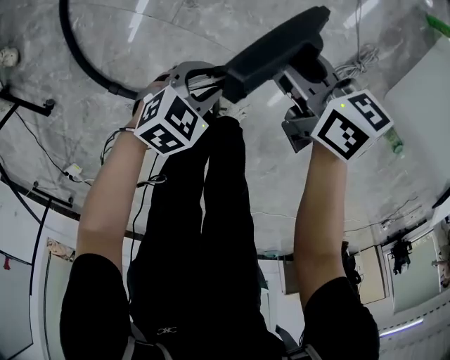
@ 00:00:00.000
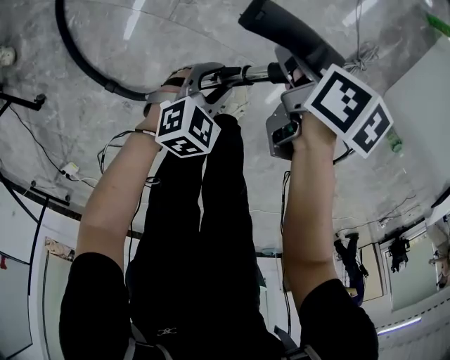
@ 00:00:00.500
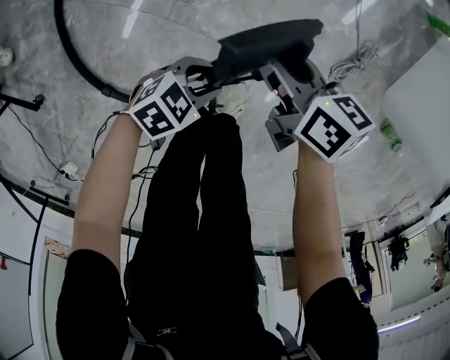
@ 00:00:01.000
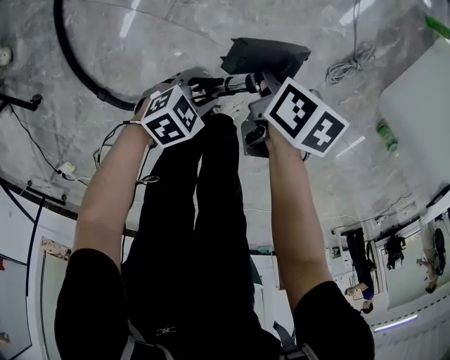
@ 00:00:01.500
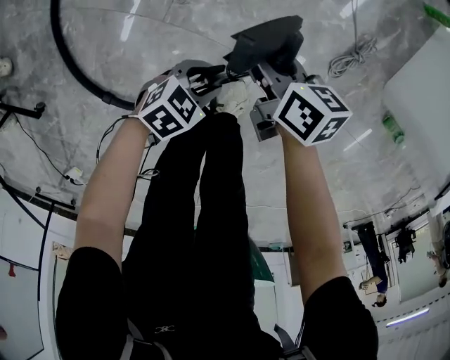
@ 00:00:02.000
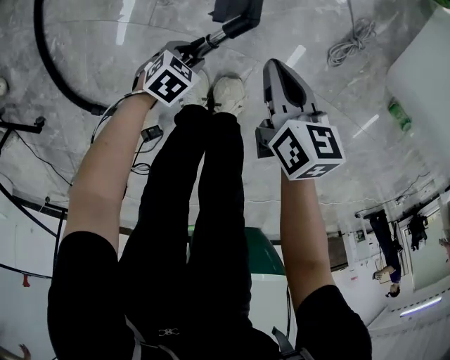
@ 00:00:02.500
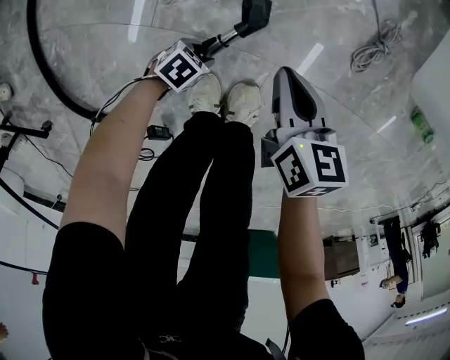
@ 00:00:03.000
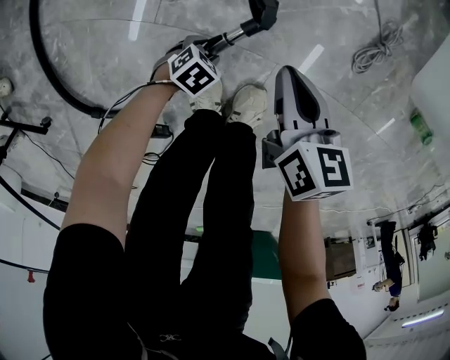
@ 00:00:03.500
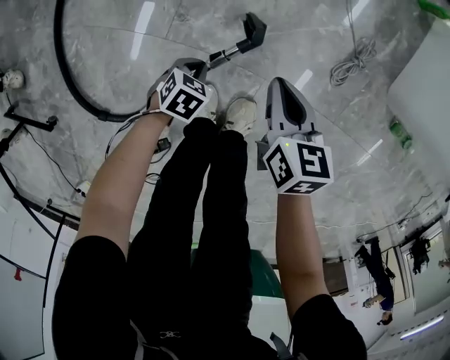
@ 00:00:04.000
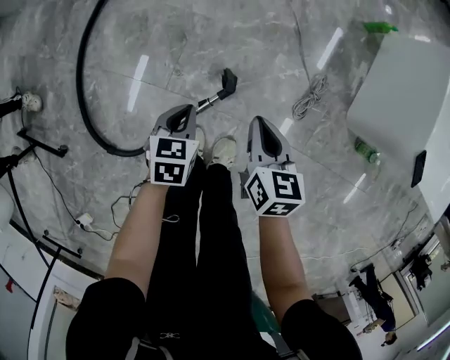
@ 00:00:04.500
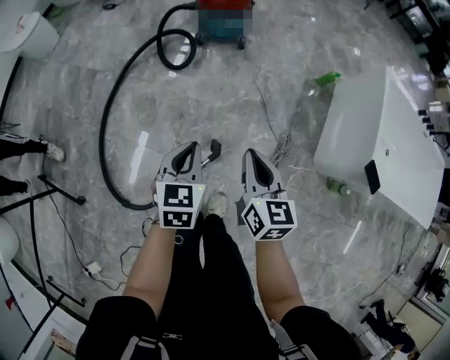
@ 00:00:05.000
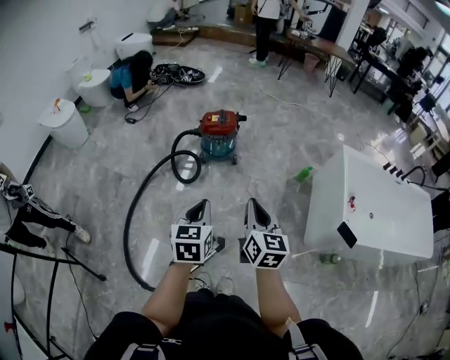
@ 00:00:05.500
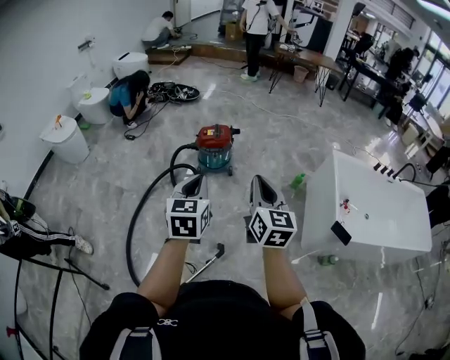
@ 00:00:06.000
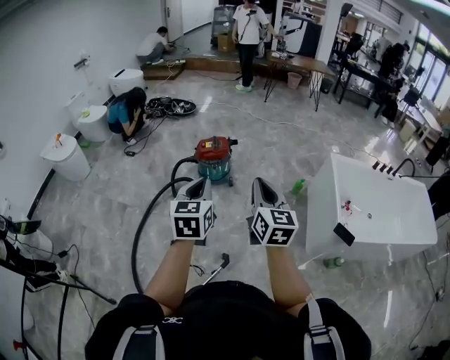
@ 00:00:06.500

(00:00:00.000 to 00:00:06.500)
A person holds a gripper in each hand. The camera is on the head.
00:00:00.000 - 00:00:02.000: Both grippers travel together downward, roughly 5 cm.
00:00:02.000 - 00:00:04.500: Both grippers travel together upward, roughly 20 cm. The right gripper turns by approximately 30 degrees, and closes its fingers, while the left gripper turns by about 40 degrees, and closes its fingers.
00:00:04.500 - 00:00:06.500: Both grippers move upward, about 70 cm. The left gripper points its fingers some 40 degrees further upward. Meanwhile the right gripper tilts its fingers approximately 40 degrees upward.

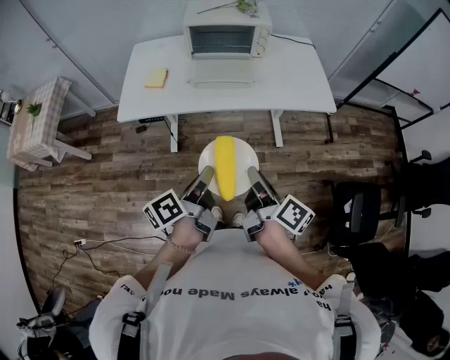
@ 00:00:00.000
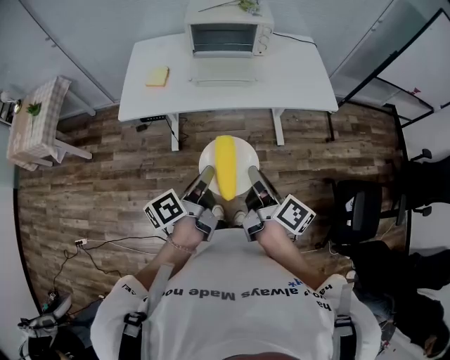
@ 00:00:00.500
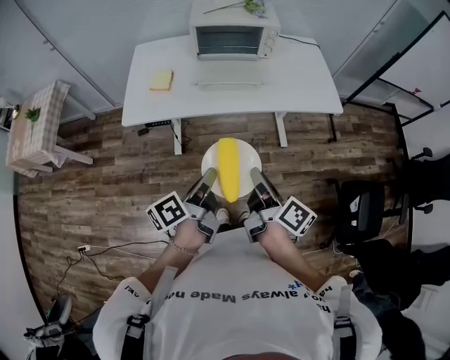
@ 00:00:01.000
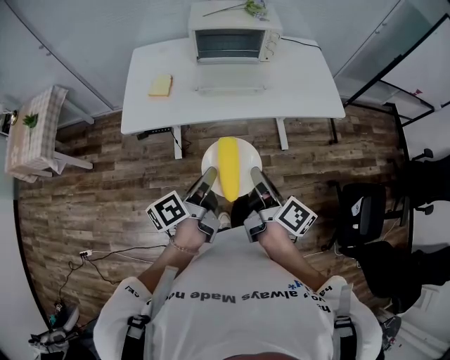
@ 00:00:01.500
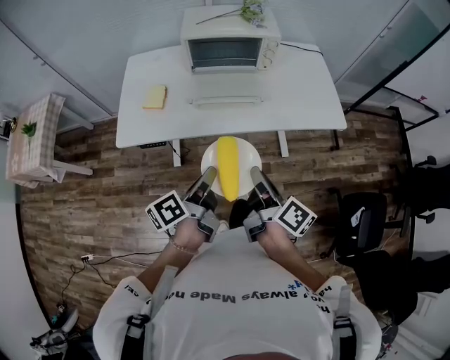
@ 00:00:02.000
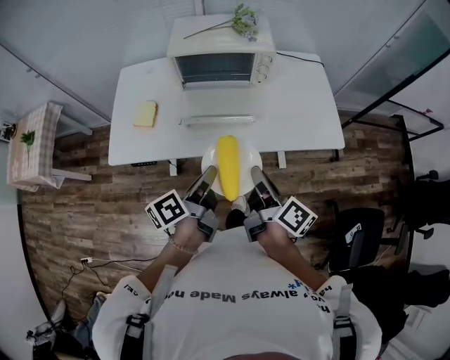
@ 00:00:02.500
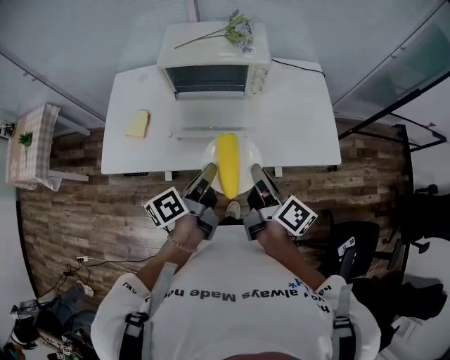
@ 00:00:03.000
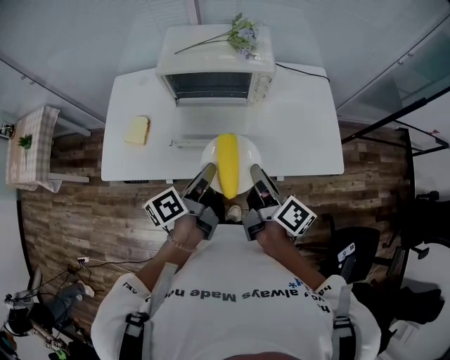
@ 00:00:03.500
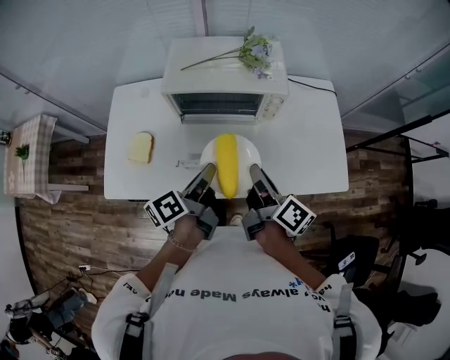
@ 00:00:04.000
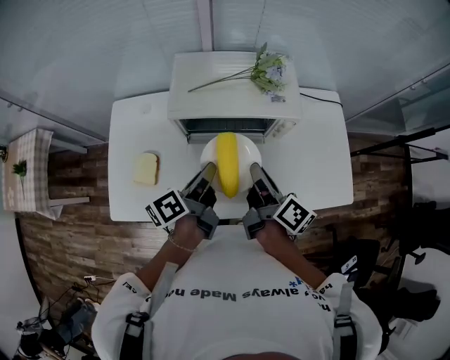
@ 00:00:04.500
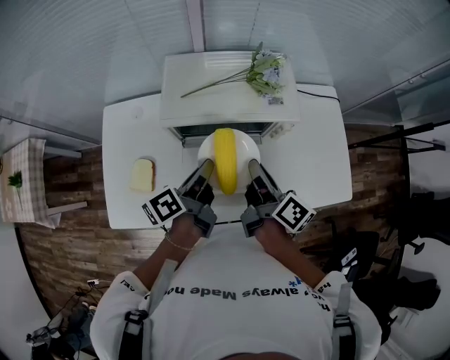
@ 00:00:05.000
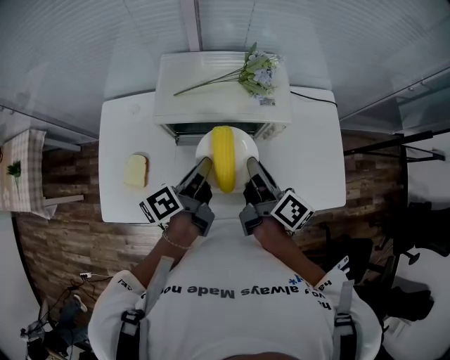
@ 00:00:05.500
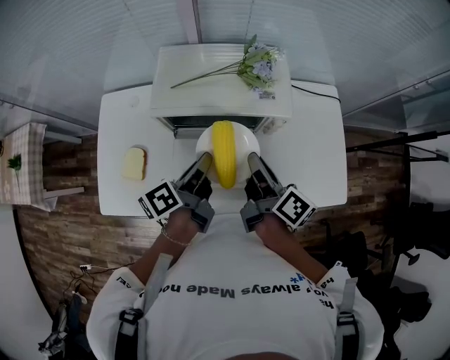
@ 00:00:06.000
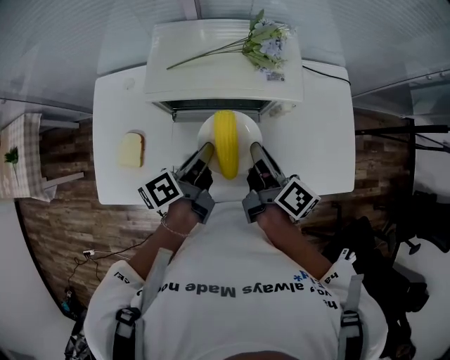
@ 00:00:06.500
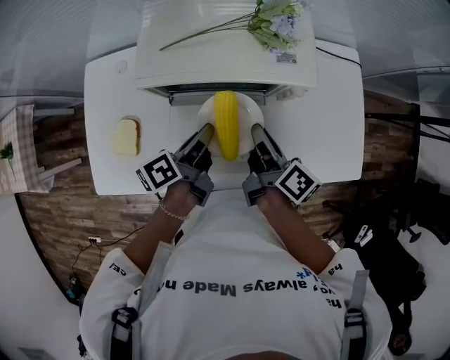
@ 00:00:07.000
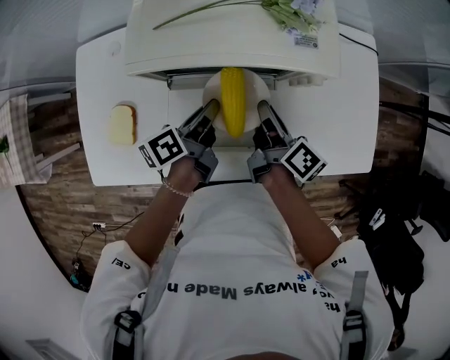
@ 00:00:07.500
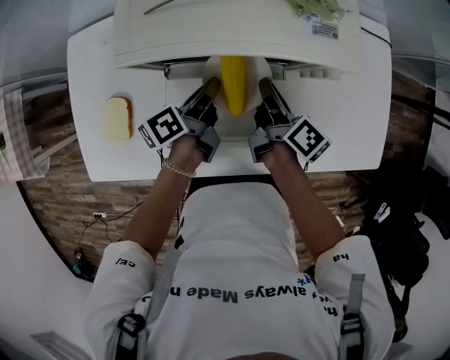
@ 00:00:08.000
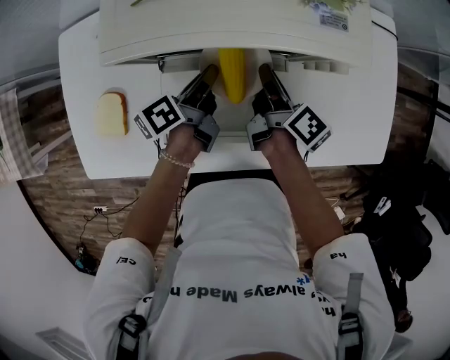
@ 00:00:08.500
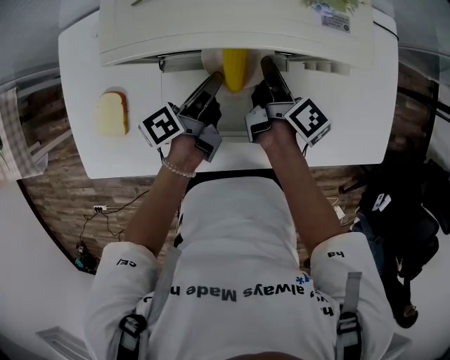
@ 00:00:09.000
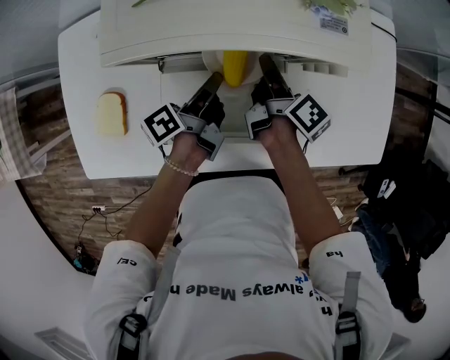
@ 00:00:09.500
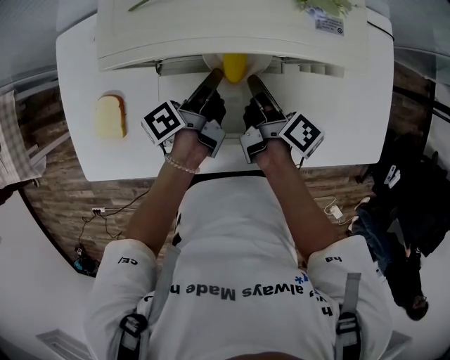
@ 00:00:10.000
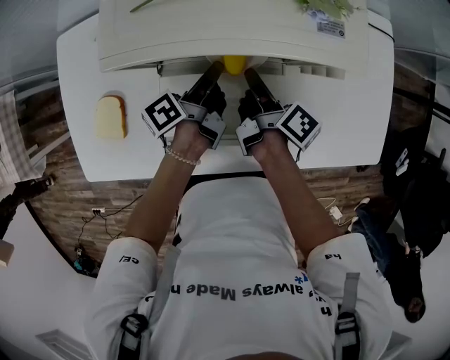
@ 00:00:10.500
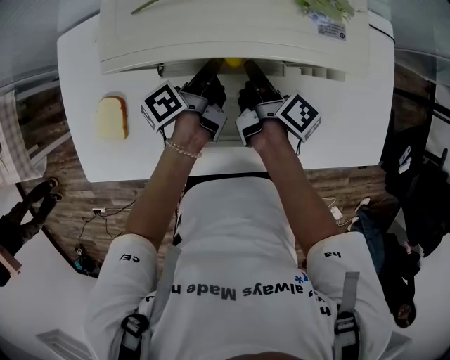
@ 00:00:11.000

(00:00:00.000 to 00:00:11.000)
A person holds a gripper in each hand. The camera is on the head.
00:00:00.000 - 00:00:02.000: Both grippers travel together forward, roughly 15 cm.
00:00:02.000 - 00:00:03.500: Both grippers travel together forward, some 25 cm.
00:00:03.500 - 00:00:05.500: Both grippers travel together forward, roughly 20 cm.
00:00:05.500 - 00:00:07.500: The grippers both shift downward by approximately 15 cm.
00:00:07.500 - 00:00:09.000: The left gripper moves approximately 5 cm. Meanwhile the right gripper shifts approximately 10 cm downward and forward.
00:00:09.000 - 00:00:11.000: The left gripper heads forward, covering some 5 cm.

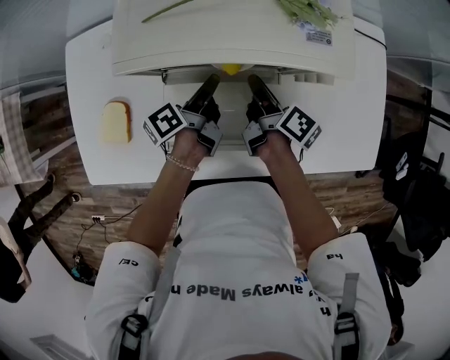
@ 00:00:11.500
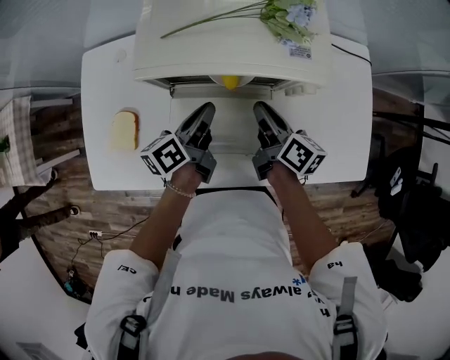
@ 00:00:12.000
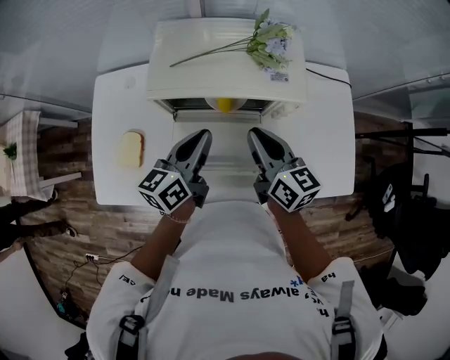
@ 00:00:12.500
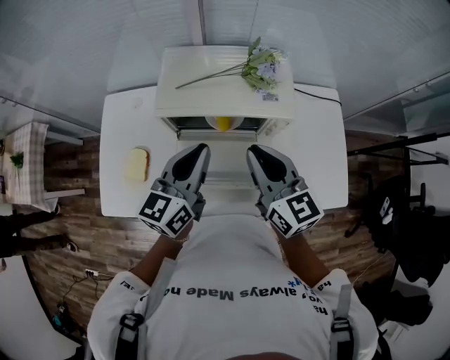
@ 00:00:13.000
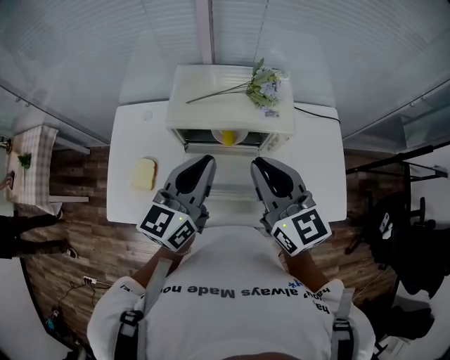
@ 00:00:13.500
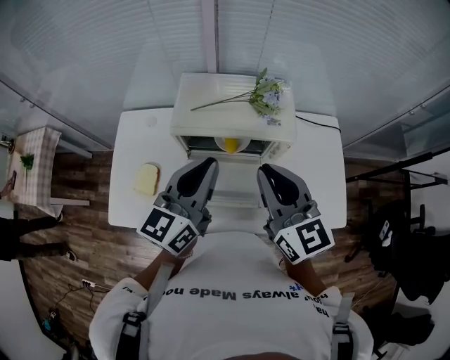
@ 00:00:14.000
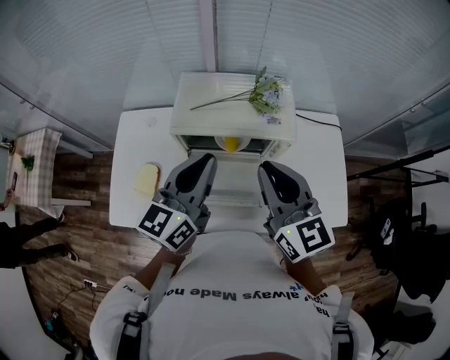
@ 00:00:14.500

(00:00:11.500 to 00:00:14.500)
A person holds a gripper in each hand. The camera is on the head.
00:00:11.500 - 00:00:13.000: The grippers both shift upward by approximately 30 cm. The left gripper rotates around the line of its fingers by about 60 degrees, clockwise from behind. Meanwhile the right gripper rotates around the line of its fingers by some 60 degrees, counterclockwise from behind.
00:00:13.000 - 00:00:14.500: The two grippers go roughly 10 cm upward.

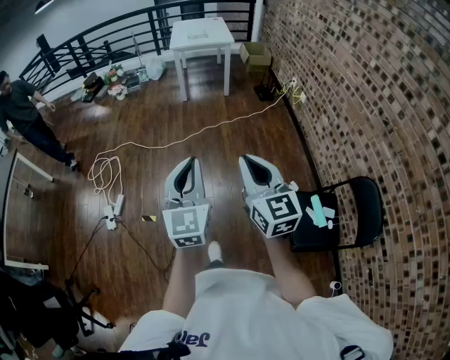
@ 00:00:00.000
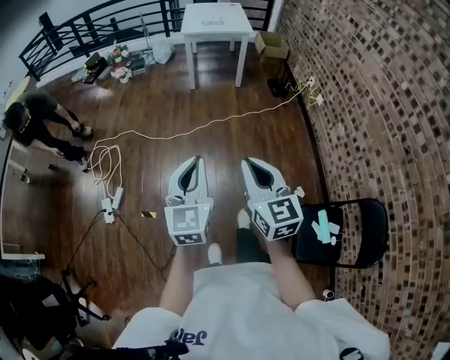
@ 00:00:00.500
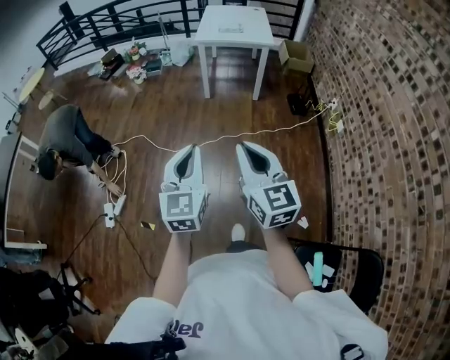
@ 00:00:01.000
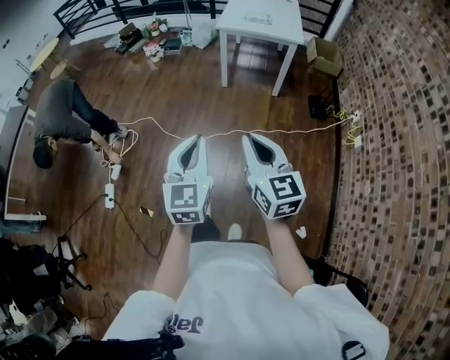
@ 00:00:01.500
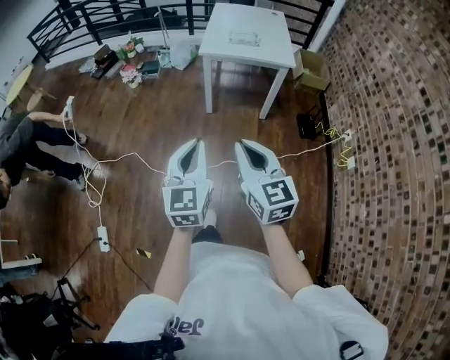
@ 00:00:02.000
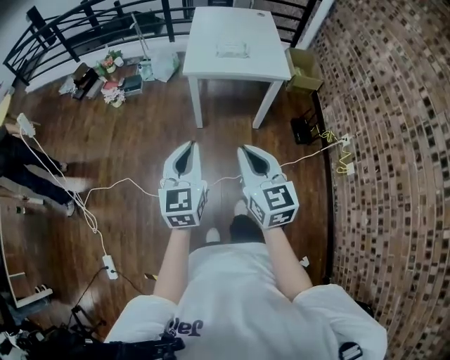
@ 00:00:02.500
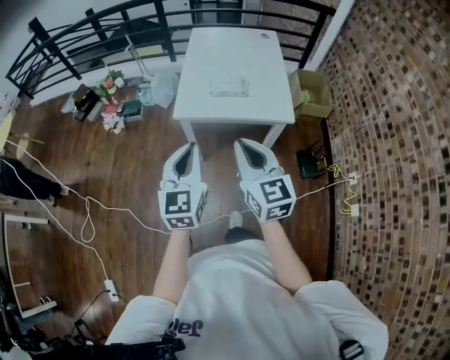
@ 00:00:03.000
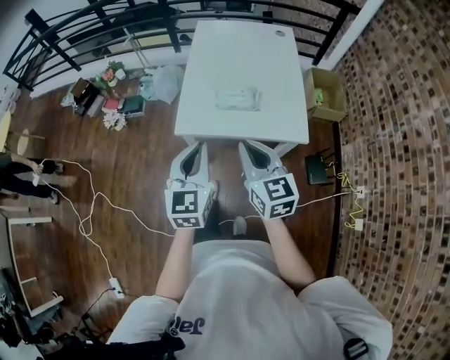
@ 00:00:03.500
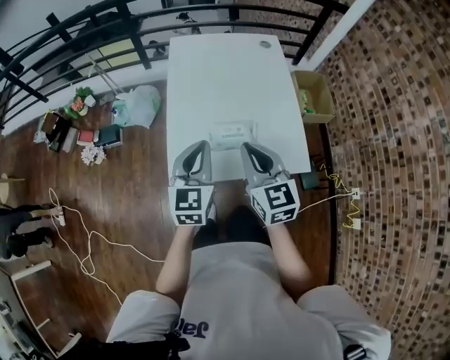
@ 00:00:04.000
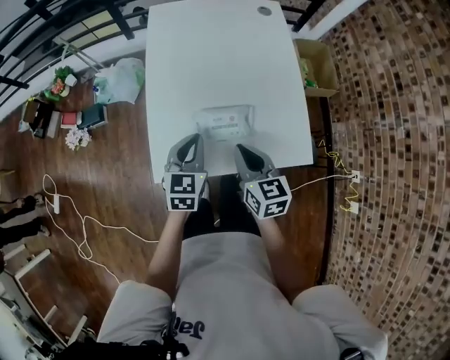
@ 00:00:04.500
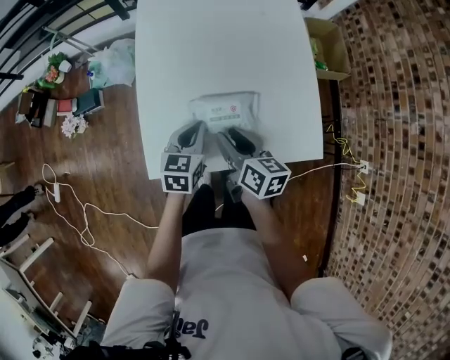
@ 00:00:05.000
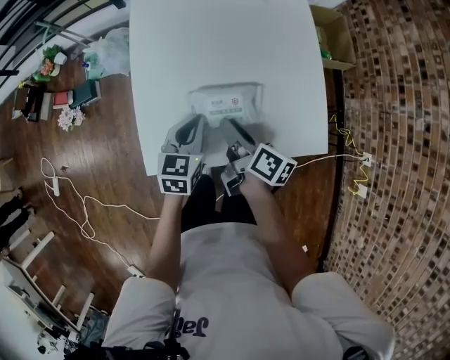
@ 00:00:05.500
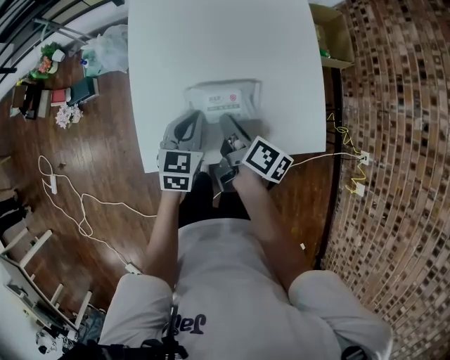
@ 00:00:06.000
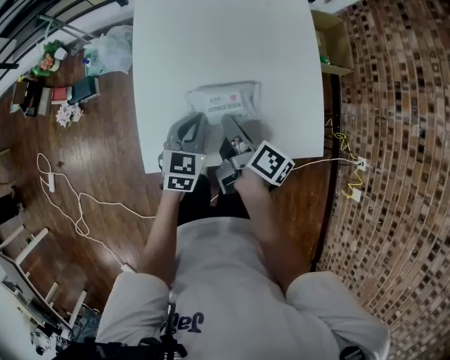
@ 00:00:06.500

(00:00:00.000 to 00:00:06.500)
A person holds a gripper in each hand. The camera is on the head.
00:00:00.000 - 00:00:02.000: The pair of grippers is taken forward, roughly 70 cm.
00:00:02.000 - 00:00:04.500: Both grippers are carried forward, roughly 80 cm. The right gripper turns by about 30 degrees, while the left gripper swivels some 30 degrees.
00:00:04.500 - 00:00:06.500: The left gripper shifts some 10 cm downward, while the right gripper goes about 10 cm downward and forward, rolls clockwise, seen from behind, by about 60 degrees, and opens, then closes again.
